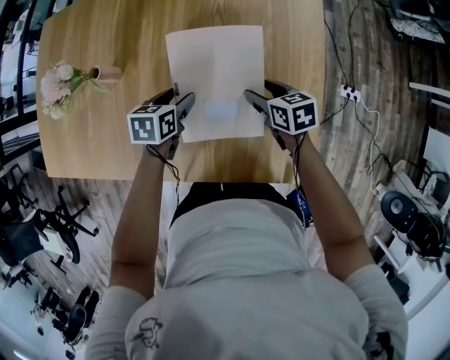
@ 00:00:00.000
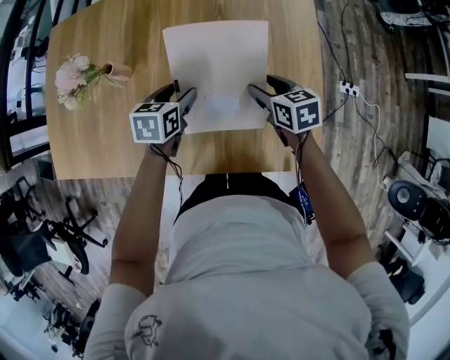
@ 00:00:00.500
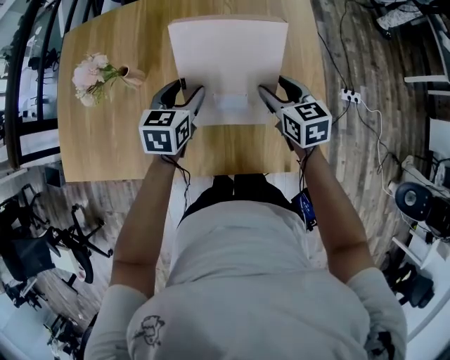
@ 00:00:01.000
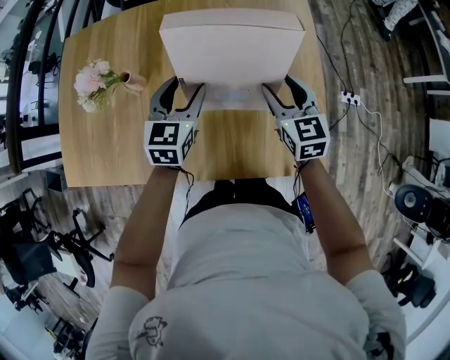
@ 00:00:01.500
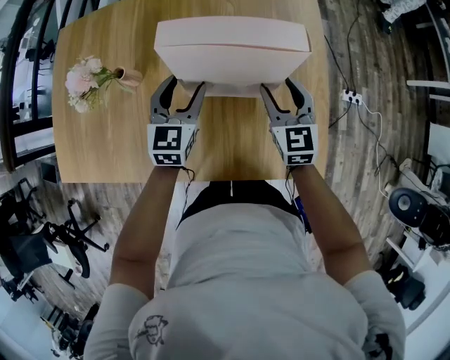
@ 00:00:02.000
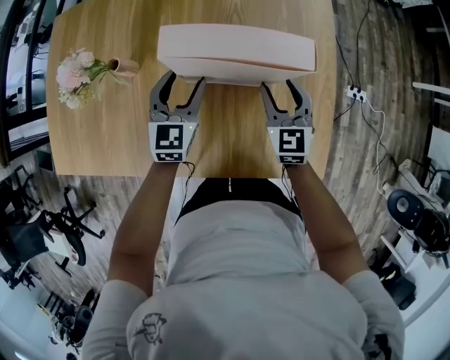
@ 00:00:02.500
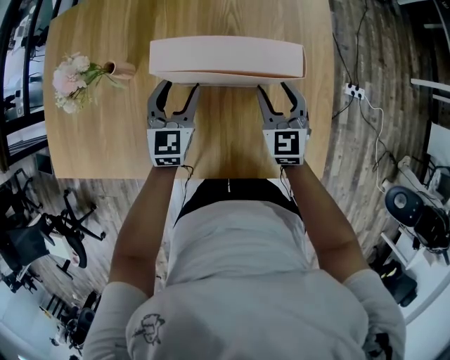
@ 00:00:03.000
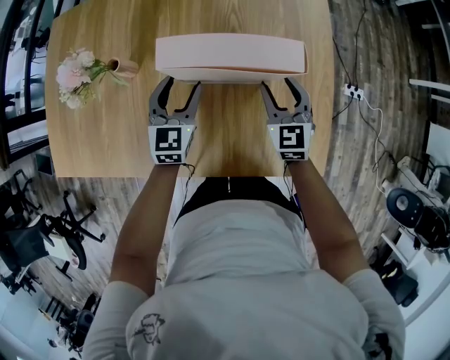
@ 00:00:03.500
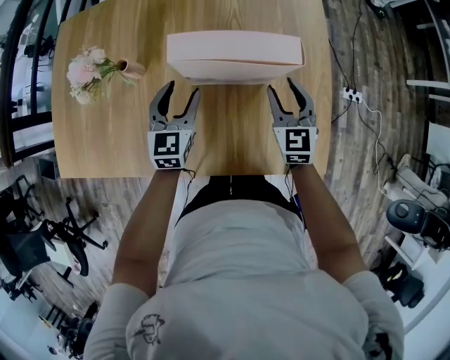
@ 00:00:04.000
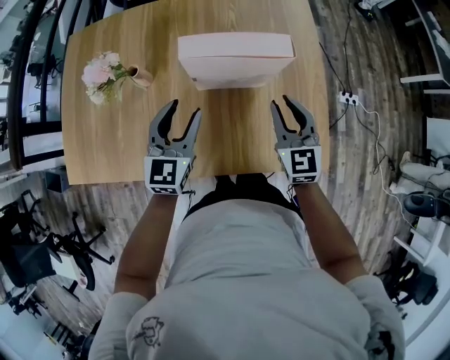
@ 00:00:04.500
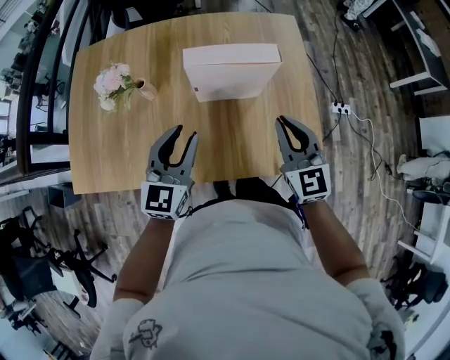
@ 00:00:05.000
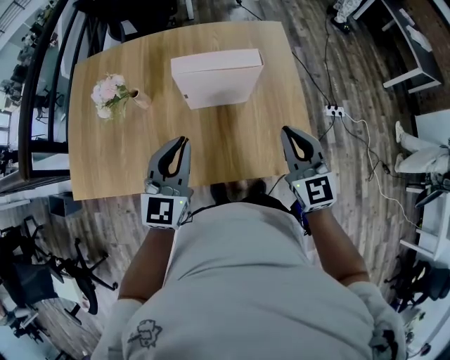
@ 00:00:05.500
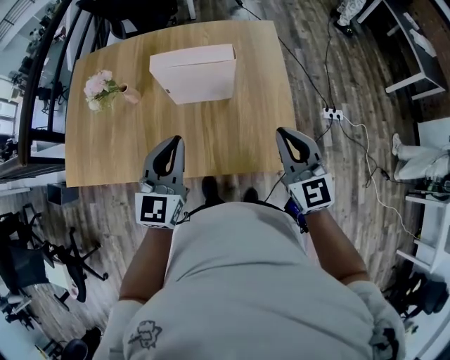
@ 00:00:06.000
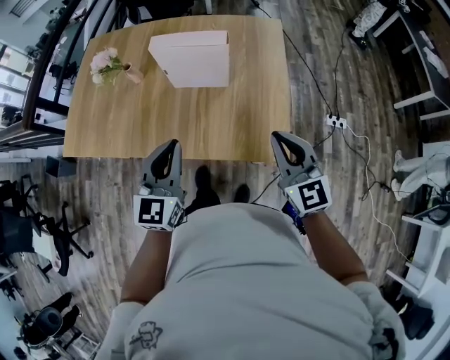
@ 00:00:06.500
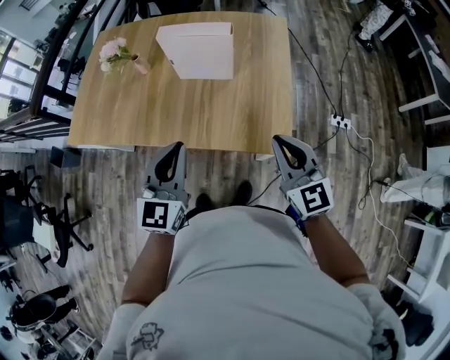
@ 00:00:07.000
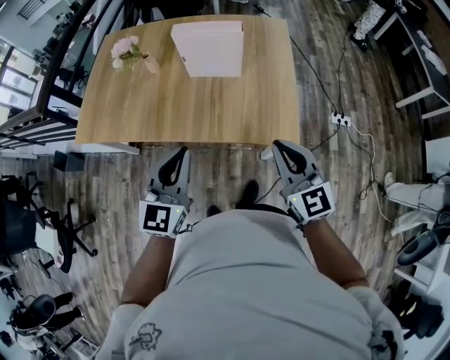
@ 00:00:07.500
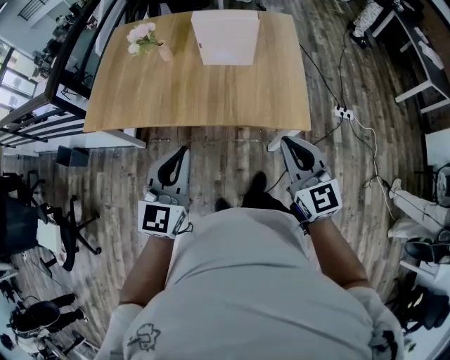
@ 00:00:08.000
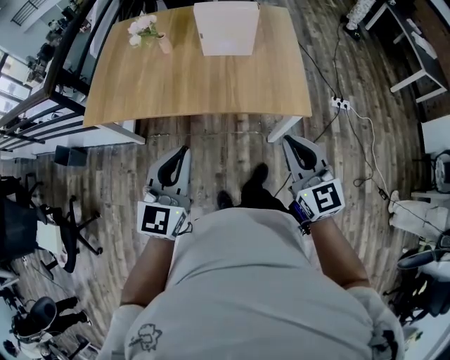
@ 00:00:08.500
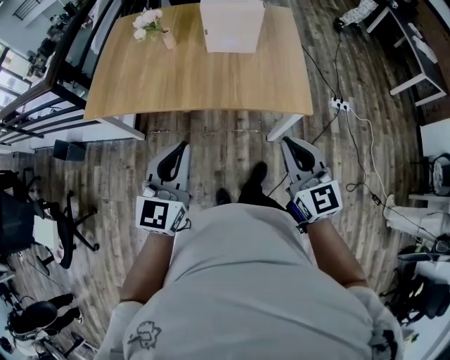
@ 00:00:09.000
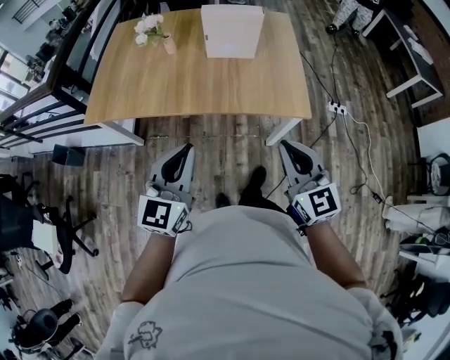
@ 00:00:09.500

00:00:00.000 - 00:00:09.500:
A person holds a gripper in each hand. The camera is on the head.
00:00:00.000 - 00:00:02.000: The grippers both shift upward by roughly 15 cm. The right gripper turns by approximately 50 degrees. The left gripper rotates about 40 degrees.
00:00:02.000 - 00:00:04.000: The left gripper shifts by approximately 5 cm.
00:00:04.000 - 00:00:05.500: Both grippers travel together upward and backward, about 25 cm. The right gripper closes its fingers. The left gripper closes up.
00:00:05.500 - 00:00:07.500: The two grippers go roughly 20 cm backward.
00:00:07.500 - 00:00:09.500: Both grippers move backward and to the left, about 20 cm.

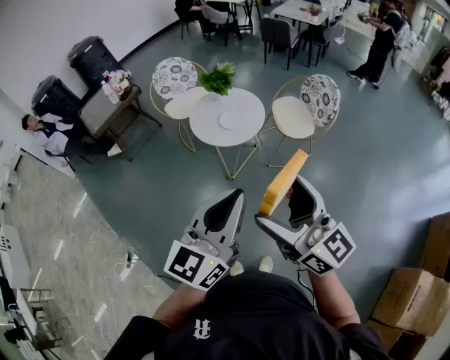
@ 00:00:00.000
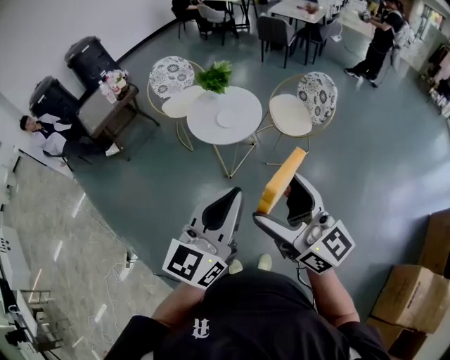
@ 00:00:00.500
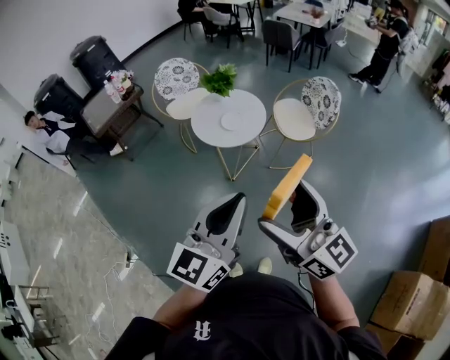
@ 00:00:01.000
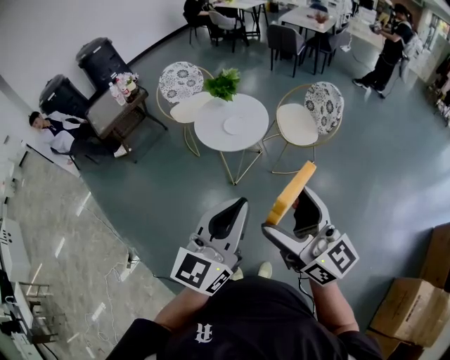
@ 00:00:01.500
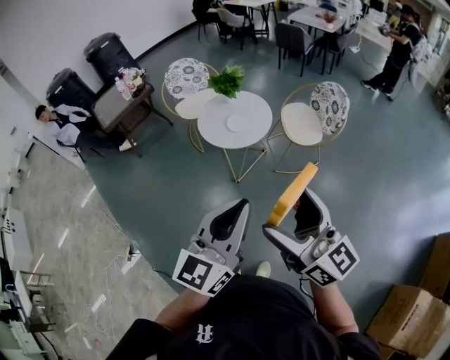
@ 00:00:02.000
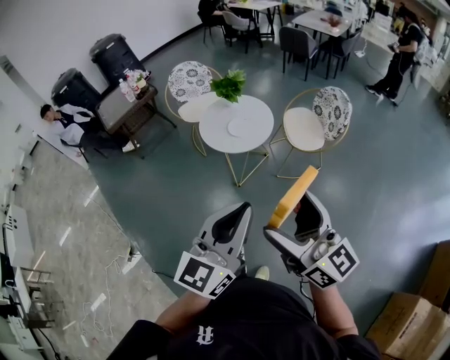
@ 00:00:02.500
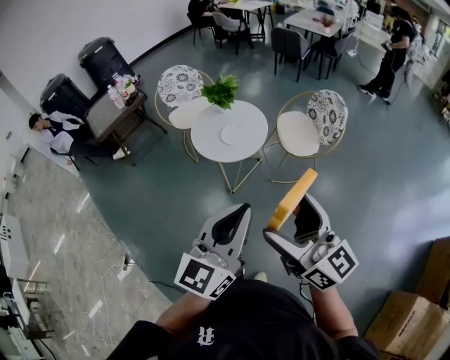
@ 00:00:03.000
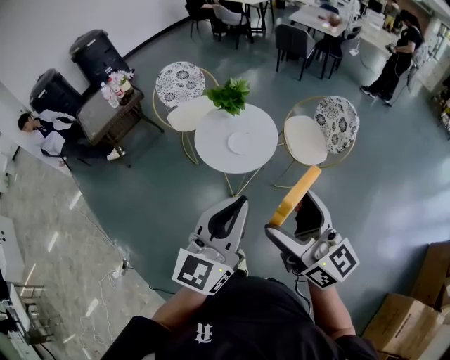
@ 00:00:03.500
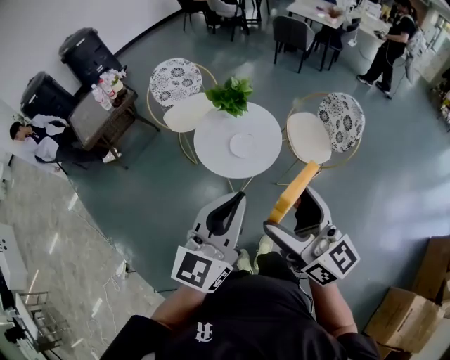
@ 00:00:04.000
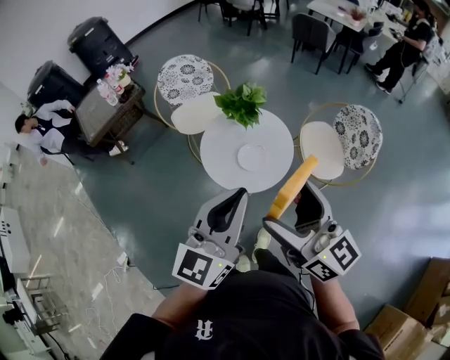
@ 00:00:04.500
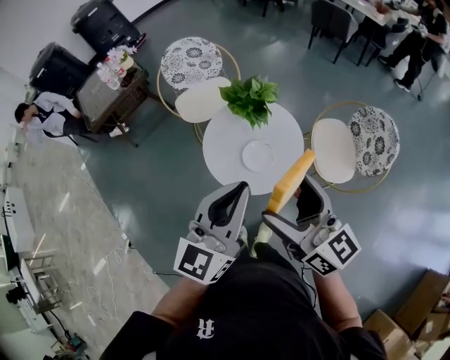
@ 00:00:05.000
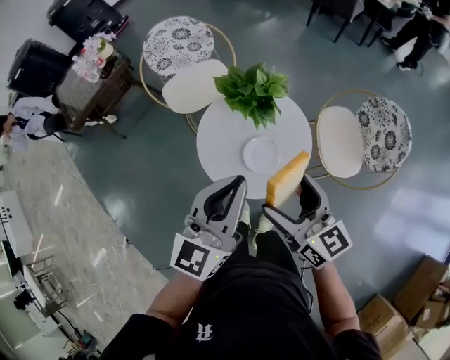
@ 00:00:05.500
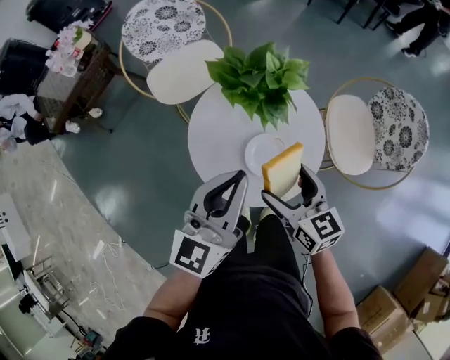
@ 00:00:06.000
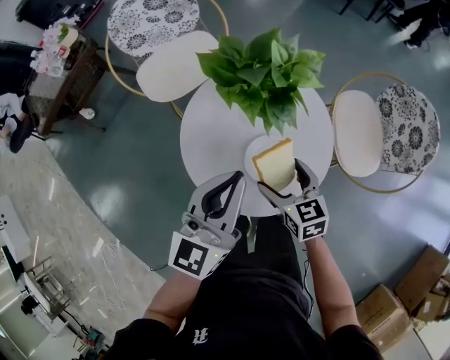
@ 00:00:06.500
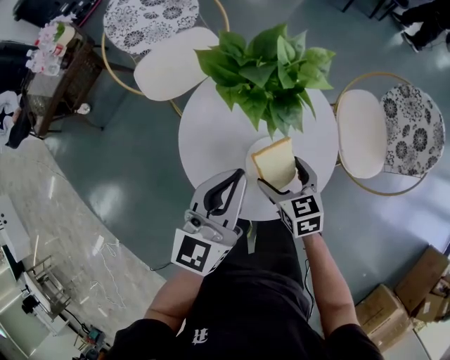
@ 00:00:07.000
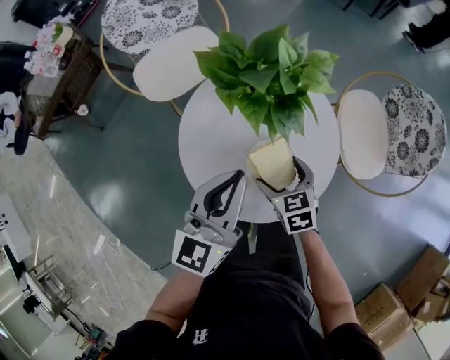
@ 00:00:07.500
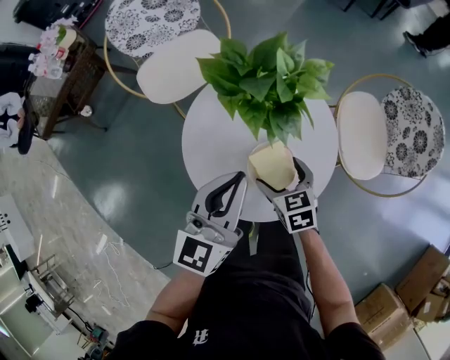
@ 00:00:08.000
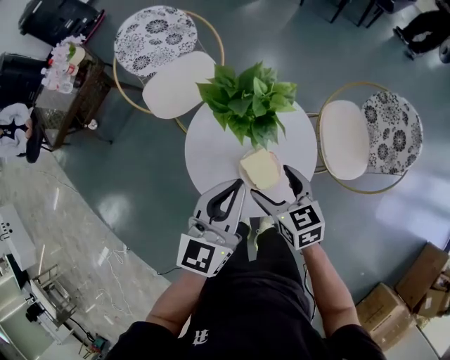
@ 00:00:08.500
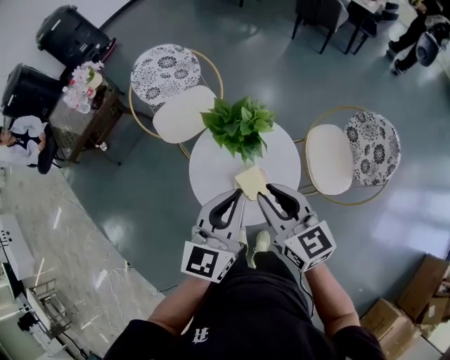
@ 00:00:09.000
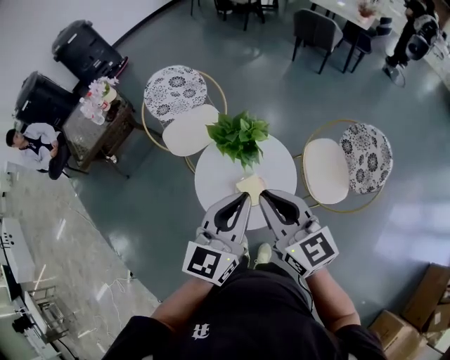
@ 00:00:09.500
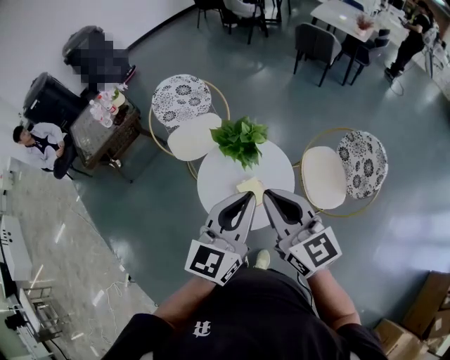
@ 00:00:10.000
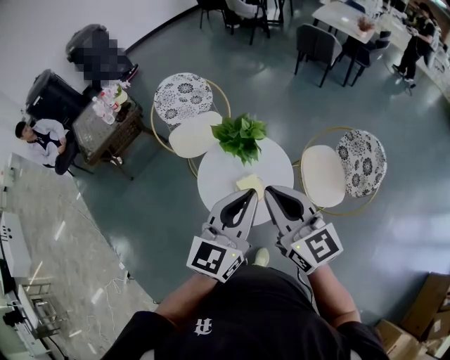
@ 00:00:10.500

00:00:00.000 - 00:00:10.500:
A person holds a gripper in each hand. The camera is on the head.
00:00:00.000 - 00:00:02.000: The left gripper changes place by about 5 cm. The right gripper is displaced to the right by roughly 5 cm.
00:00:02.000 - 00:00:04.000: The two grippers go roughly 30 cm forward.
00:00:04.000 - 00:00:06.500: The right gripper moves downward and forward, approximately 60 cm, and angles its fingers downward, by some 50 degrees. Meanwhile the left gripper travels forward and downward by approximately 50 cm.
00:00:06.500 - 00:00:08.500: The right gripper travels upward by roughly 10 cm. The left gripper travels upward by approximately 5 cm.
00:00:08.500 - 00:00:10.500: The left gripper shifts some 25 cm upward and backward. Meanwhile the right gripper heads upward, covering approximately 35 cm, points its fingers approximately 30 degrees further upward, and closes its fingers.

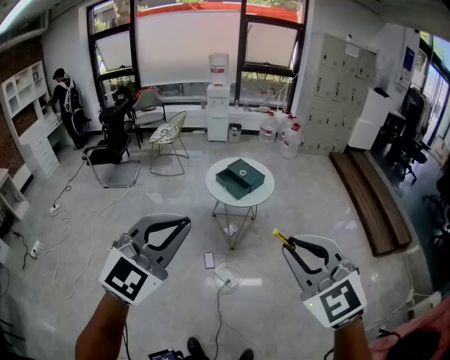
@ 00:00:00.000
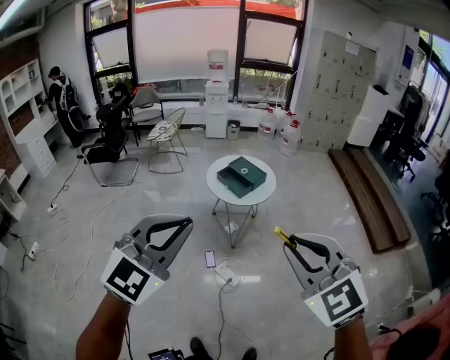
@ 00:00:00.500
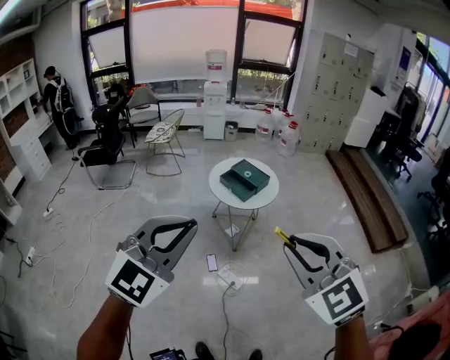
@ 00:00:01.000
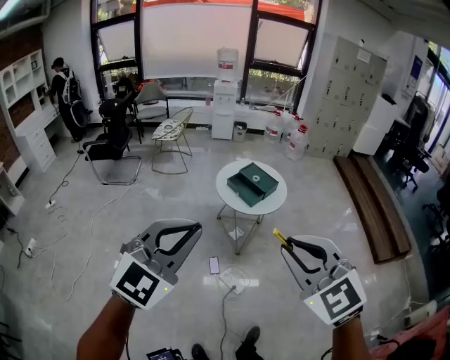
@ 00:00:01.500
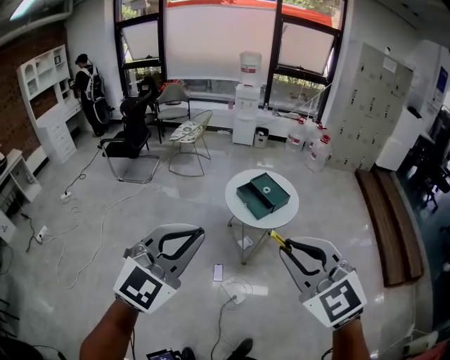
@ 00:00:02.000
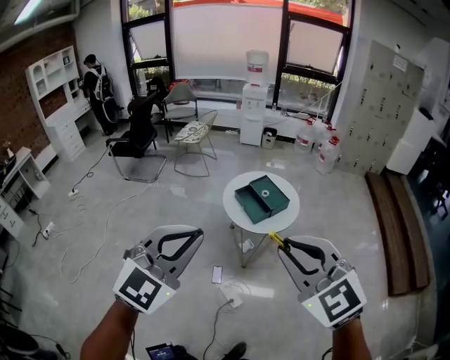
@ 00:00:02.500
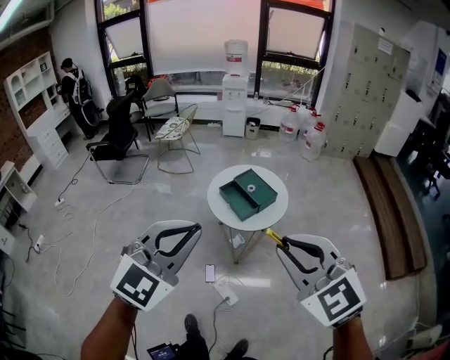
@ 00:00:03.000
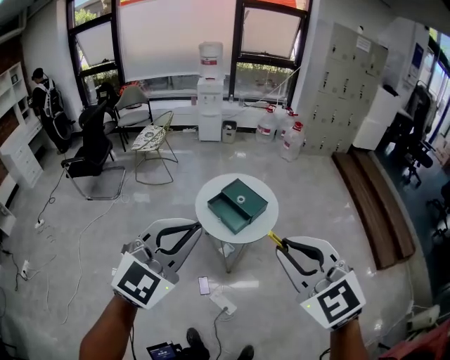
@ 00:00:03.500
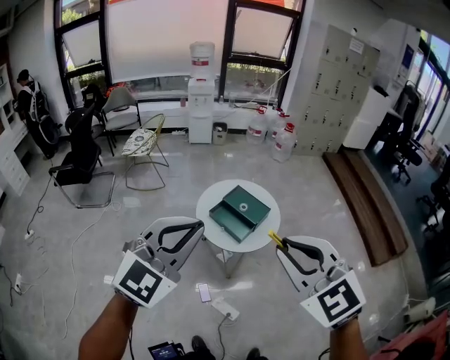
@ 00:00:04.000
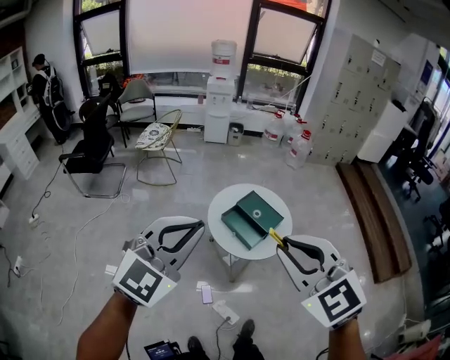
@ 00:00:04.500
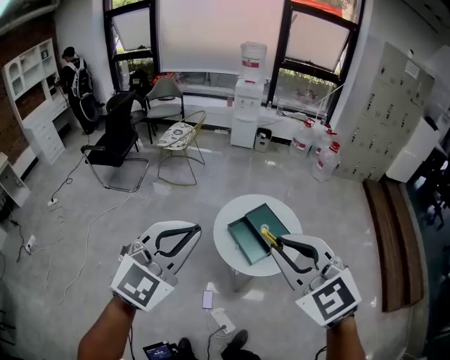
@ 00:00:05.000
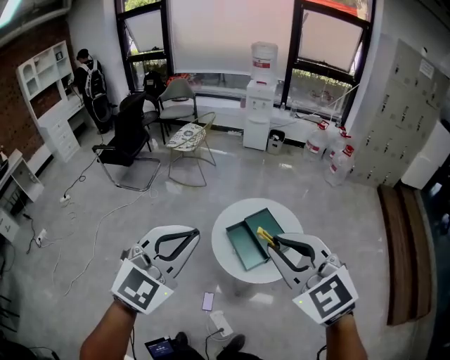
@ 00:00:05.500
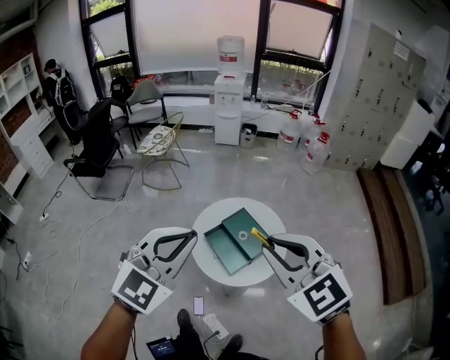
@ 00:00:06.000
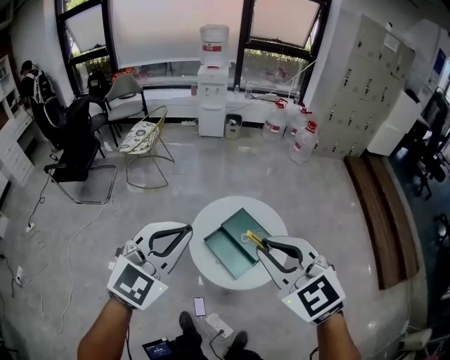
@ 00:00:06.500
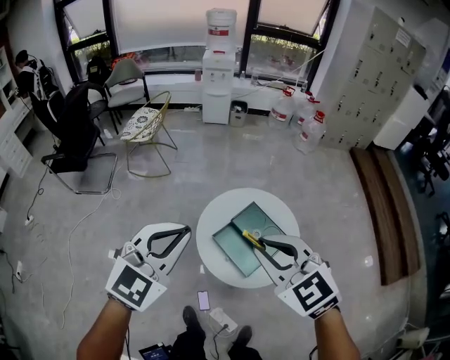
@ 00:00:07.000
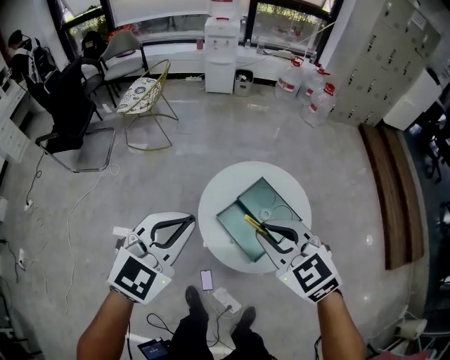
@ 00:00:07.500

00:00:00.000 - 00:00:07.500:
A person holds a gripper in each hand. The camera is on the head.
00:00:00.000 - 00:00:02.000: The grippers both shift forward by about 20 cm.
00:00:02.000 - 00:00:04.000: The two grippers go about 35 cm forward.
00:00:04.000 - 00:00:05.500: Both grippers travel together forward and to the right, approximately 25 cm. The right gripper rotates approximately 20 degrees, while the left gripper changes its angle by roughly 20 degrees.
00:00:05.500 - 00:00:07.500: The left gripper is displaced forward and downward by some 40 cm, while the right gripper goes some 40 cm downward and forward, and rotates approximately 20 degrees.
